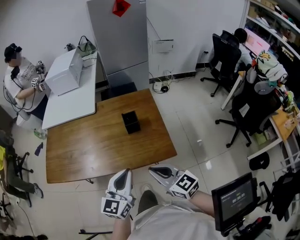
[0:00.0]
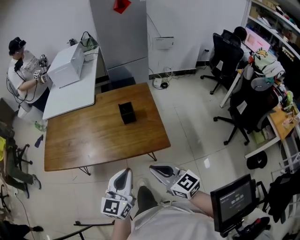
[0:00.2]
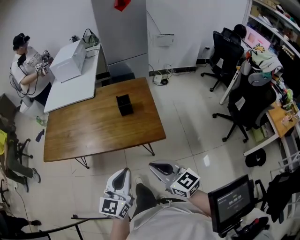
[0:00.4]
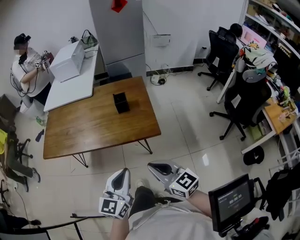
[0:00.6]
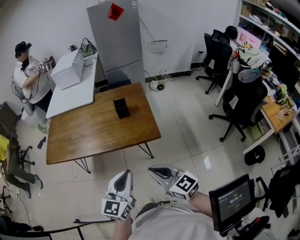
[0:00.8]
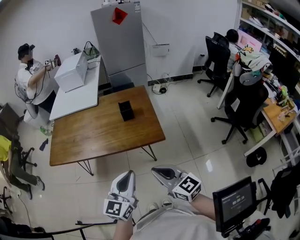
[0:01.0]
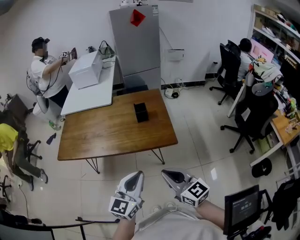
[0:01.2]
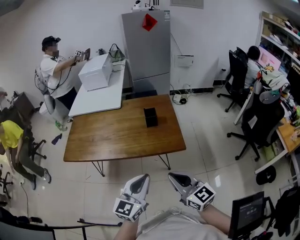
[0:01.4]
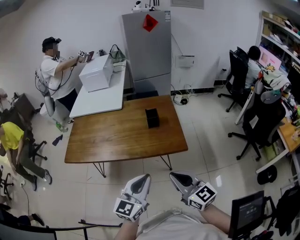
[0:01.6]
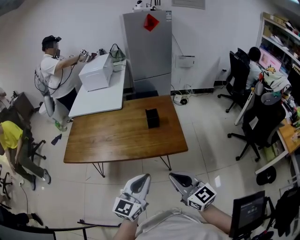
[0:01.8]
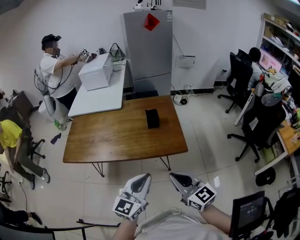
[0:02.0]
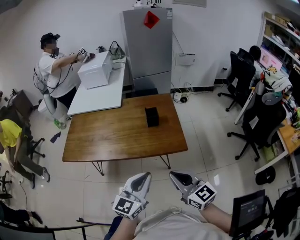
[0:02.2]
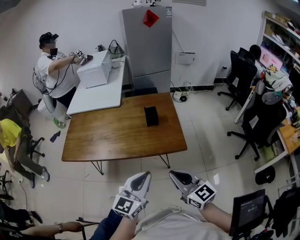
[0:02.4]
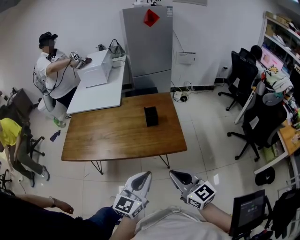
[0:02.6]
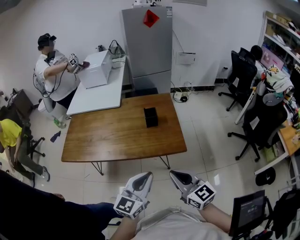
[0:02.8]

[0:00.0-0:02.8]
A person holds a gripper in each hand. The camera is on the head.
0:00.0 to 0:01.4: The grippers both shift backward by approximately 15 cm.
0:01.4 to 0:02.8: The grippers stay close to where they were, moving slightly.

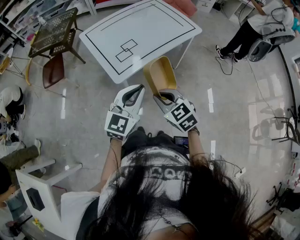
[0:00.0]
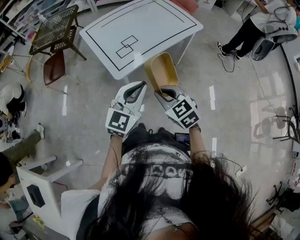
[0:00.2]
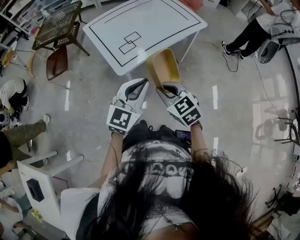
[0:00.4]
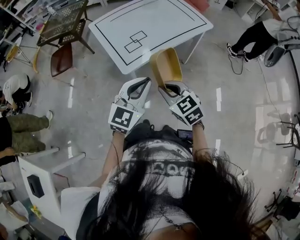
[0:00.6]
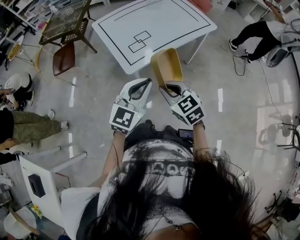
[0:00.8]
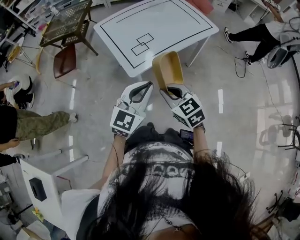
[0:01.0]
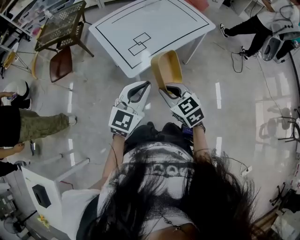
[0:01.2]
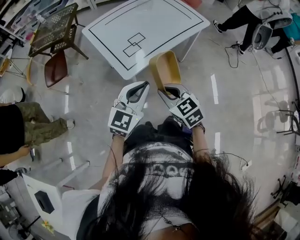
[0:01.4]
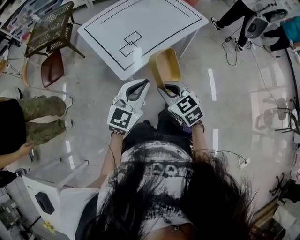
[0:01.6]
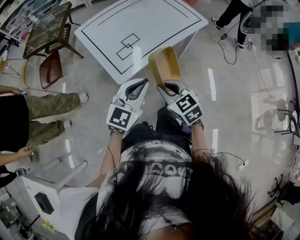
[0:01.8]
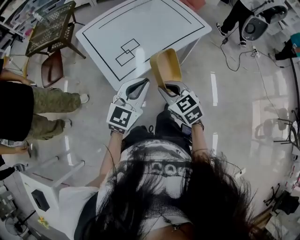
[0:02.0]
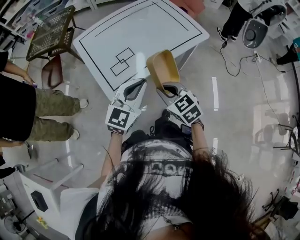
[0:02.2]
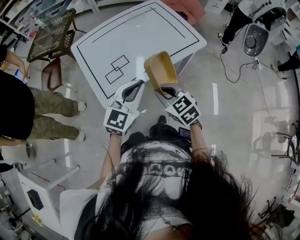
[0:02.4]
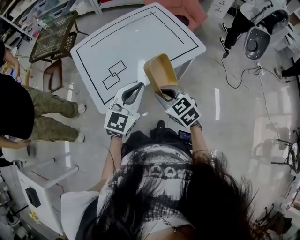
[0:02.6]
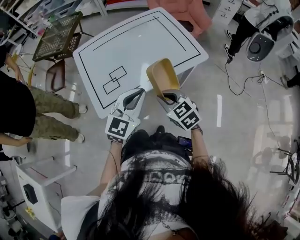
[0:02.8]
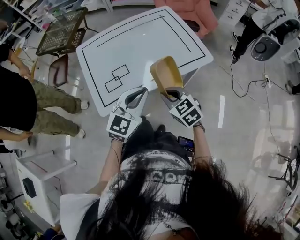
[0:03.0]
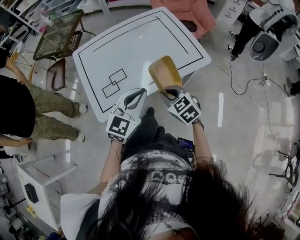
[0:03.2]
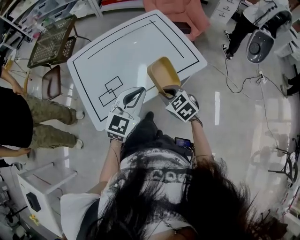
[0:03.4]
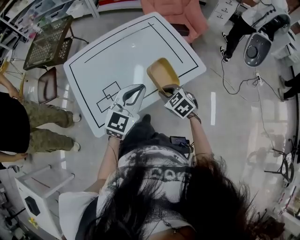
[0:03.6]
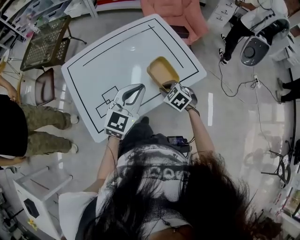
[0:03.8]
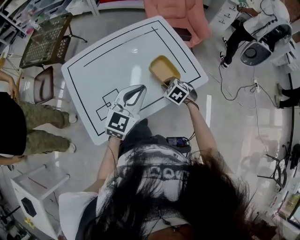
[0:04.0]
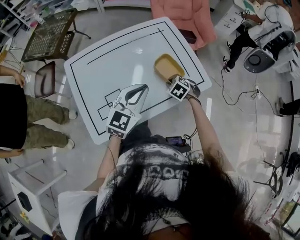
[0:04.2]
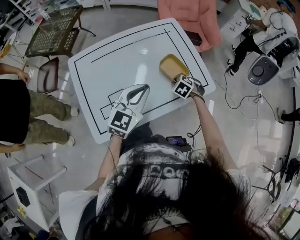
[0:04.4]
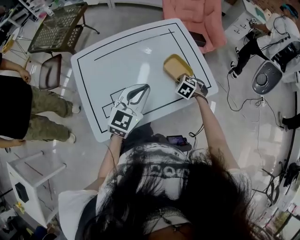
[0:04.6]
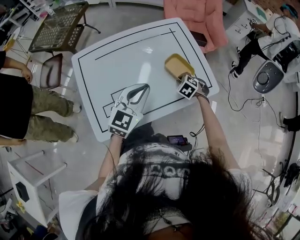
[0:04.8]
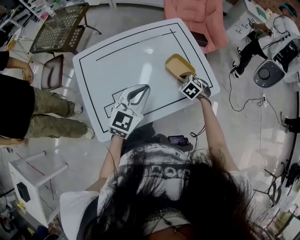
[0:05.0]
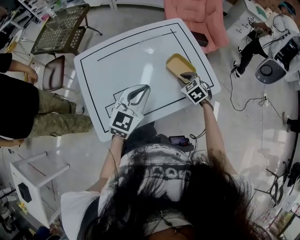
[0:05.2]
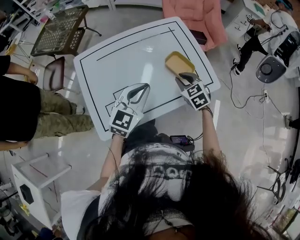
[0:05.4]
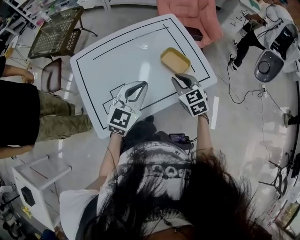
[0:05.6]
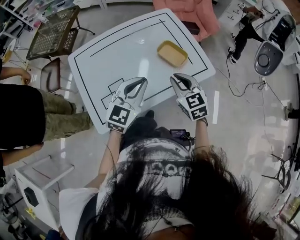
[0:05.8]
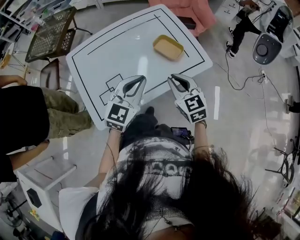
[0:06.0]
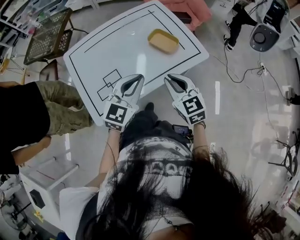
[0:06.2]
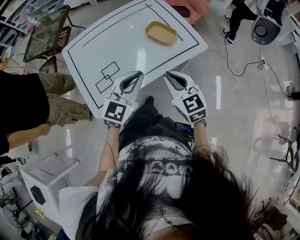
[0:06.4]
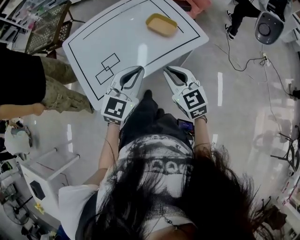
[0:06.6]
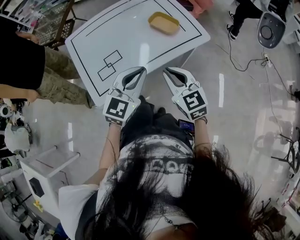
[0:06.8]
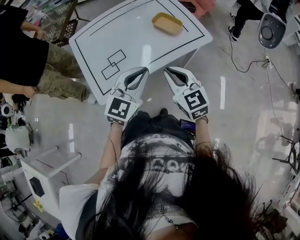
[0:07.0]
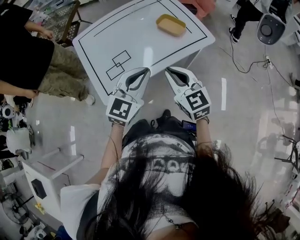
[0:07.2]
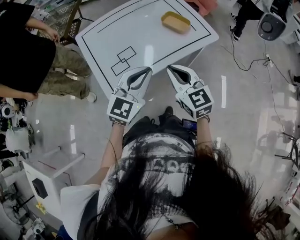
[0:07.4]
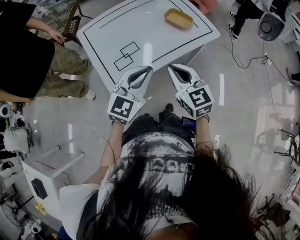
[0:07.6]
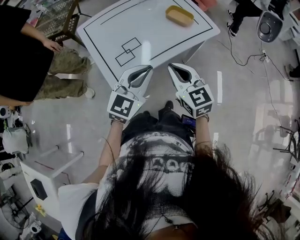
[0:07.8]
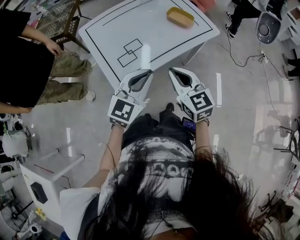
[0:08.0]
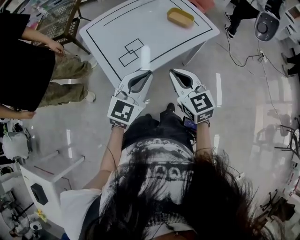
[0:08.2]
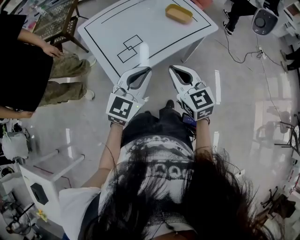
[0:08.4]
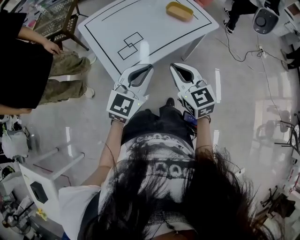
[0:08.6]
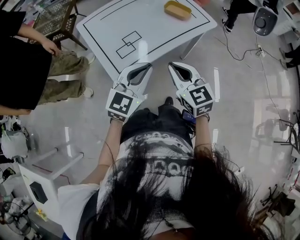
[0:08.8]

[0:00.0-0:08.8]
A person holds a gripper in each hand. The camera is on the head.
0:00.0 to 0:01.4: The right gripper moves about 5 cm. Meanwhile the left gripper changes place by about 5 cm.
0:01.4 to 0:03.0: The two grippers go approximately 35 cm forward and to the right.
0:03.0 to 0:04.4: The left gripper travels forward by approximately 20 cm. Meanwhile the right gripper heads forward and downward, covering approximately 35 cm, and tips its fingers downward by approximately 30 degrees.
0:04.4 to 0:05.8: The right gripper moves upward and backward, roughly 20 cm, and angles its fingers upward, by some 40 degrees.
0:05.8 to 0:07.4: Both grippers travel together backward, some 20 cm.
0:07.4 to 0:08.8: Both grippers travel together backward and to the left, some 10 cm.

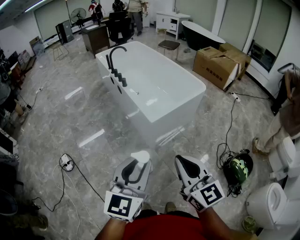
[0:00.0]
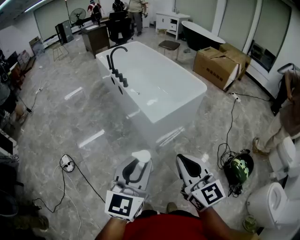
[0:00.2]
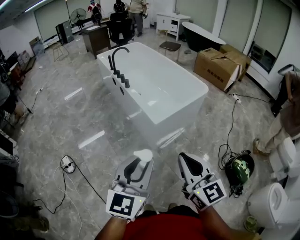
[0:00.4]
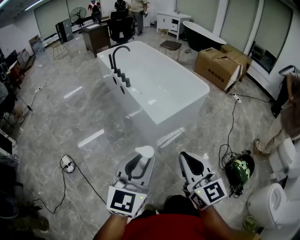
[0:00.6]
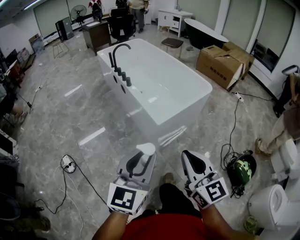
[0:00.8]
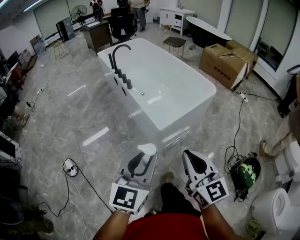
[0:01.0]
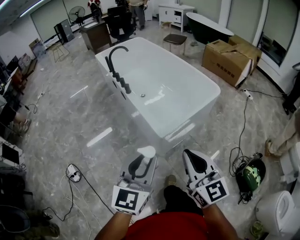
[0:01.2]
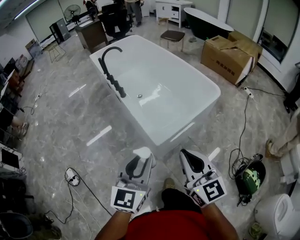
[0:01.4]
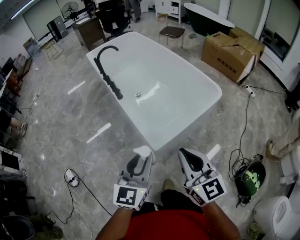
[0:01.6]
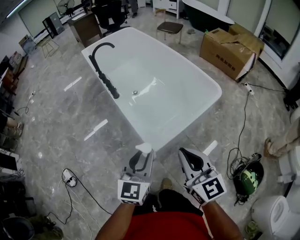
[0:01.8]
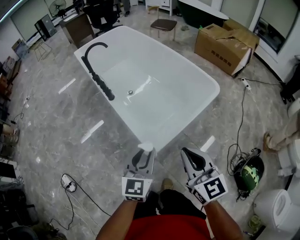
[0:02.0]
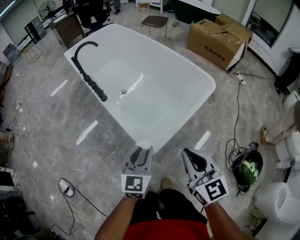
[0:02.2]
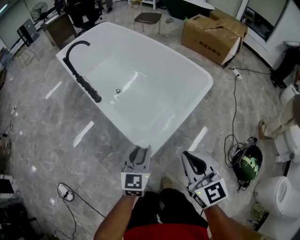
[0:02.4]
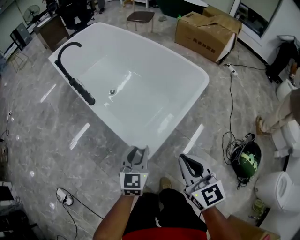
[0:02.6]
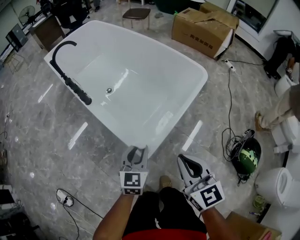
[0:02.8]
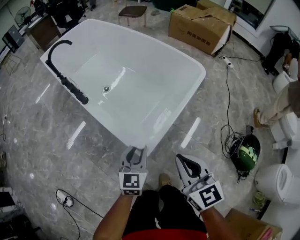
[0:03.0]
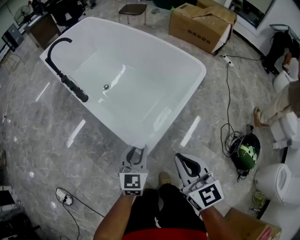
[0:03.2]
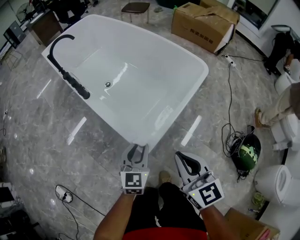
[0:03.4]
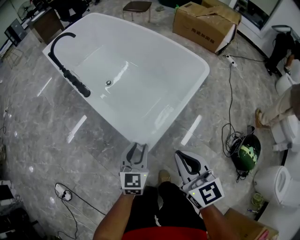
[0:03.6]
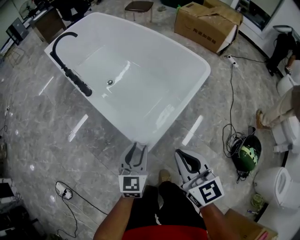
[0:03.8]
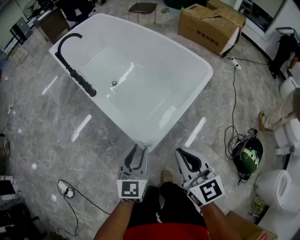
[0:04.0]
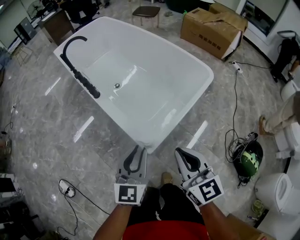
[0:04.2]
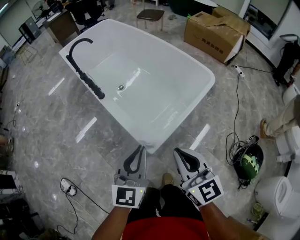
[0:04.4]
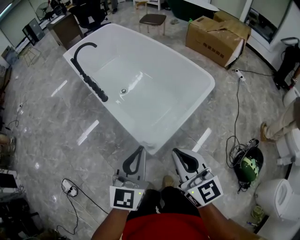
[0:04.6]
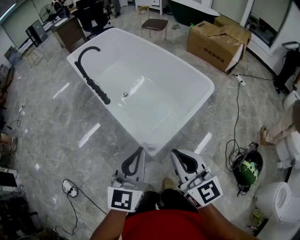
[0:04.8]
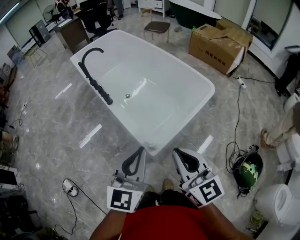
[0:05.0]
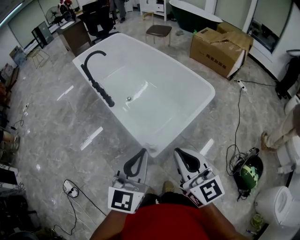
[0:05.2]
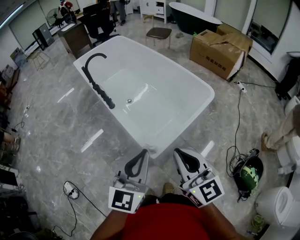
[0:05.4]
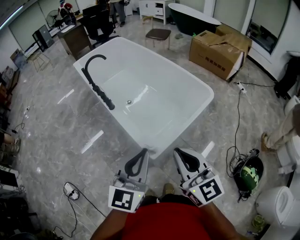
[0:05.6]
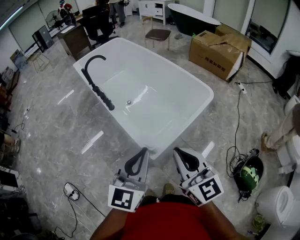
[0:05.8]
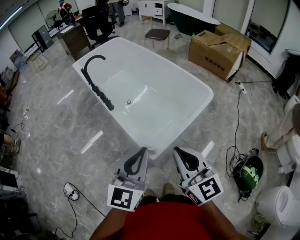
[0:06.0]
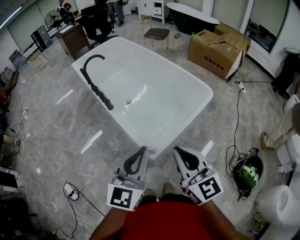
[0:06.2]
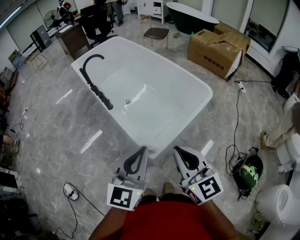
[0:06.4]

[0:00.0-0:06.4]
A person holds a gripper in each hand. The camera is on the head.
0:00.0 to 0:01.6: The grippers both shift forward by roughly 35 cm.
0:01.6 to 0:03.2: The left gripper goes about 25 cm downward and forward, while the right gripper heads downward and forward, covering approximately 15 cm.
0:03.2 to 0:04.8: The right gripper shifts about 10 cm upward; the left gripper moves upward, approximately 25 cm.
0:04.8 to 0:06.4: The grippers make only small movements.

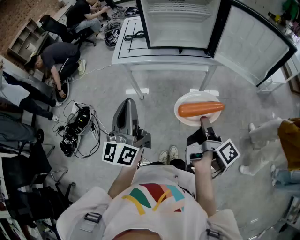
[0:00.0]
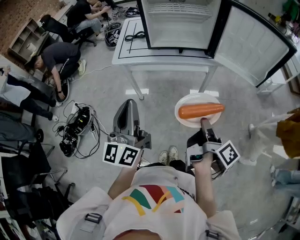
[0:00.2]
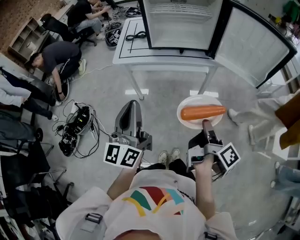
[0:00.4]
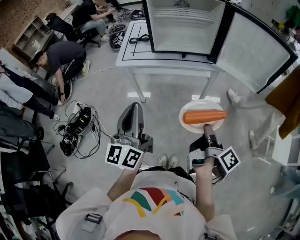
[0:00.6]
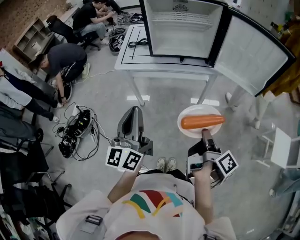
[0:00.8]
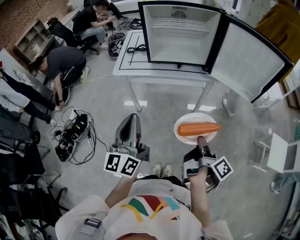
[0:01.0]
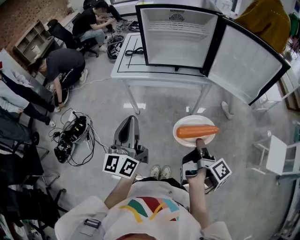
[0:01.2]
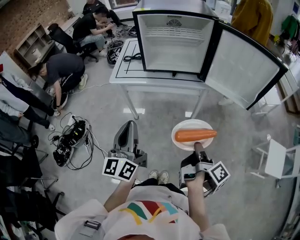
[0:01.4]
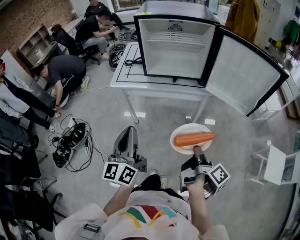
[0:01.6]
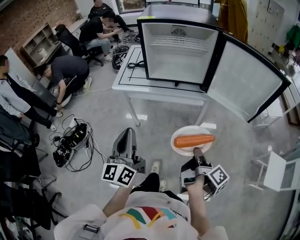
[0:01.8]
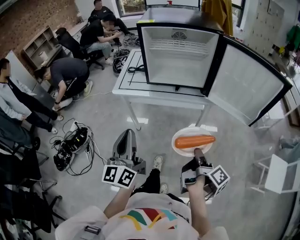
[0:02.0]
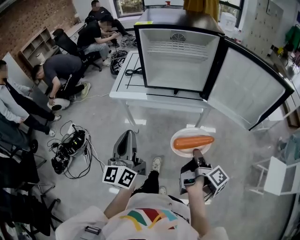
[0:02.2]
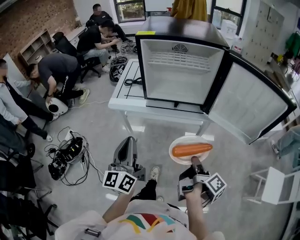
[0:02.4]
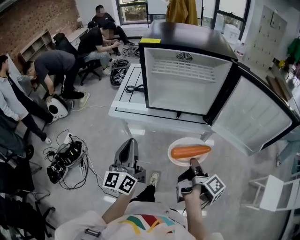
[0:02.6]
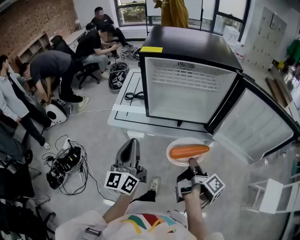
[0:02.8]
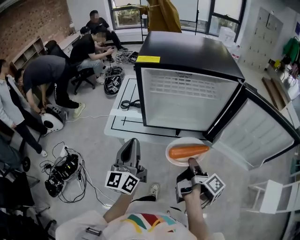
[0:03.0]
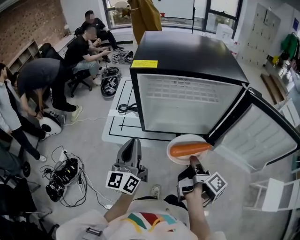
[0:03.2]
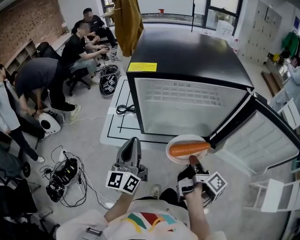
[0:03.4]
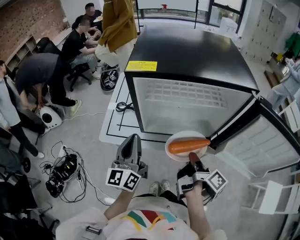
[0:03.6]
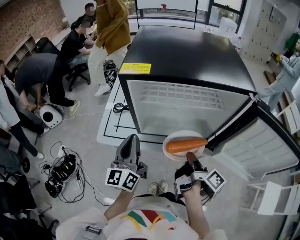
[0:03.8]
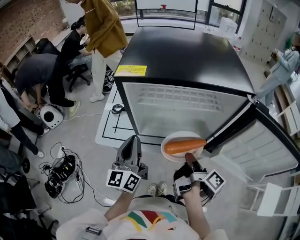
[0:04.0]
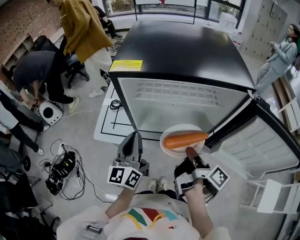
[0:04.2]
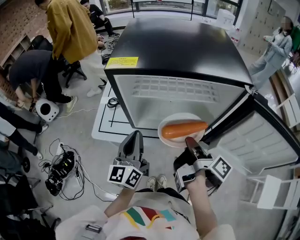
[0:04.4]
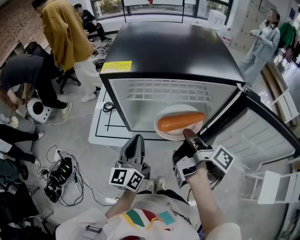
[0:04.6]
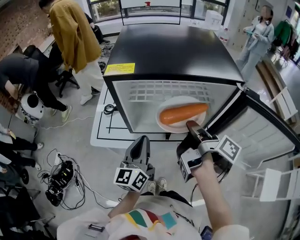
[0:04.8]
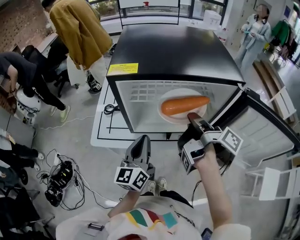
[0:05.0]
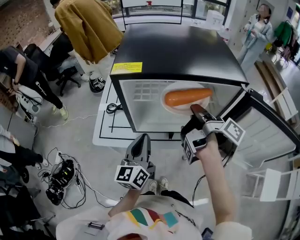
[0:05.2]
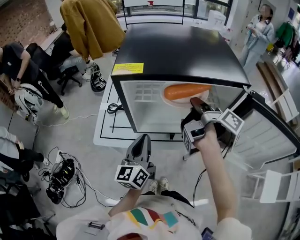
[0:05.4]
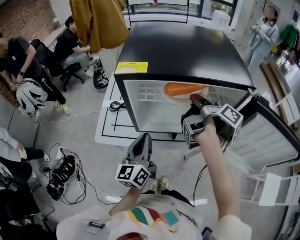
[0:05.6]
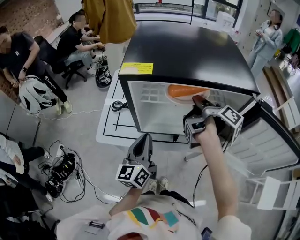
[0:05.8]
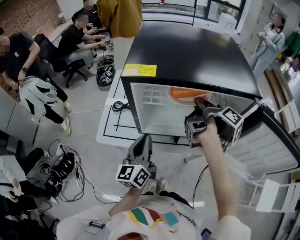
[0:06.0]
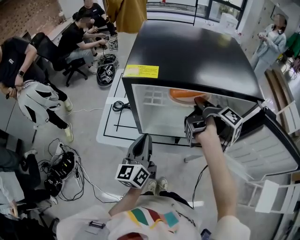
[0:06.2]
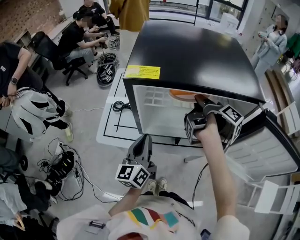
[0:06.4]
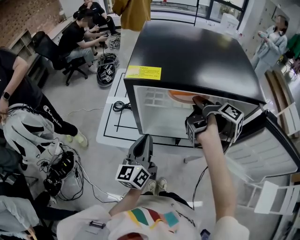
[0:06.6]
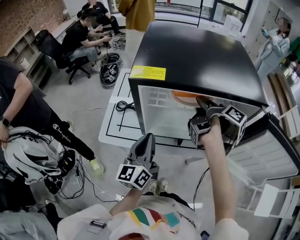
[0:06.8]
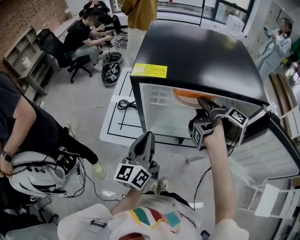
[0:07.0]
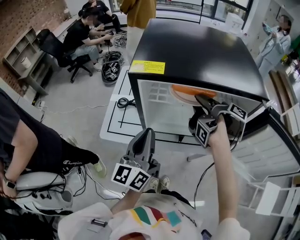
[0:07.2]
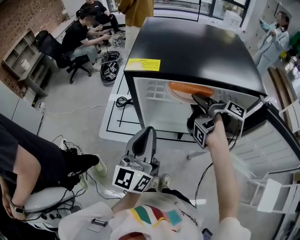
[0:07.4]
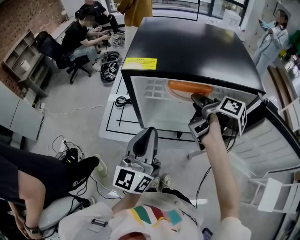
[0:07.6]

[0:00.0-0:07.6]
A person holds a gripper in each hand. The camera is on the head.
0:00.0 to 0:01.6: The left gripper moves some 5 cm.
0:01.6 to 0:03.0: The left gripper shifts by approximately 30 cm.
0:03.0 to 0:04.6: The left gripper changes place by approximately 15 cm.
0:06.0 to 0:07.6: The left gripper moves upward, roughly 10 cm.
